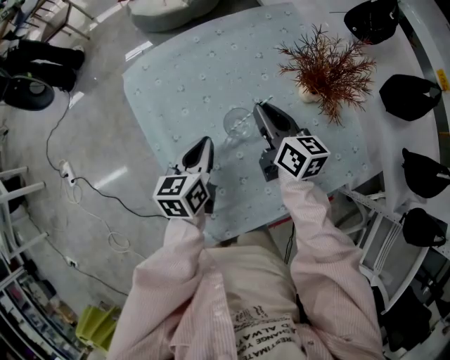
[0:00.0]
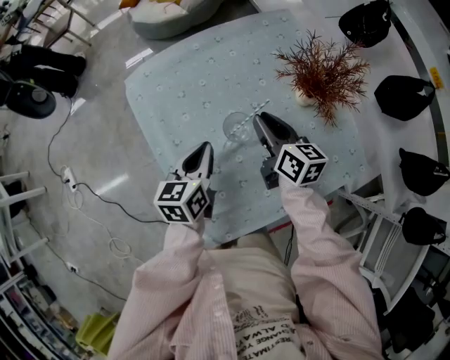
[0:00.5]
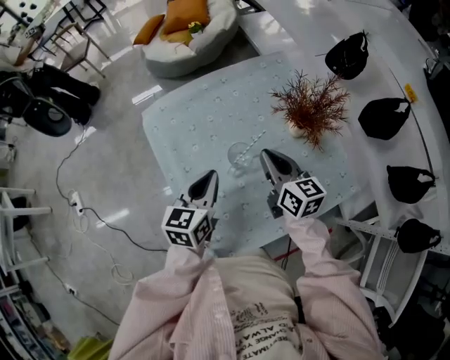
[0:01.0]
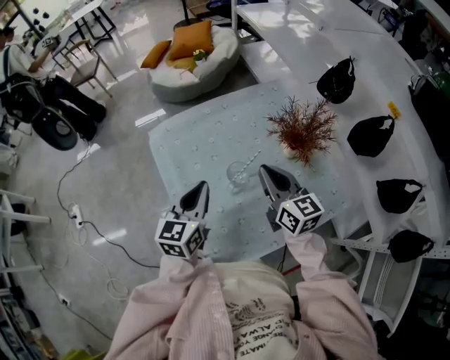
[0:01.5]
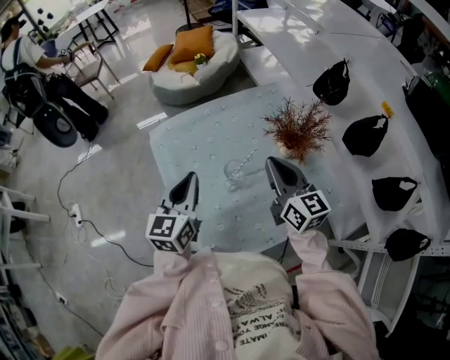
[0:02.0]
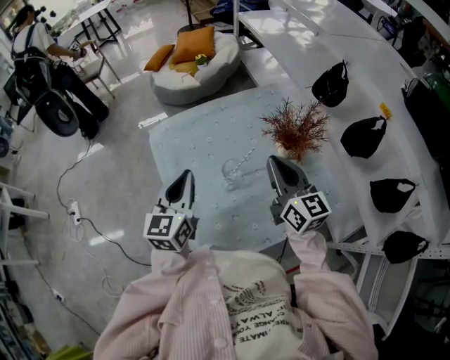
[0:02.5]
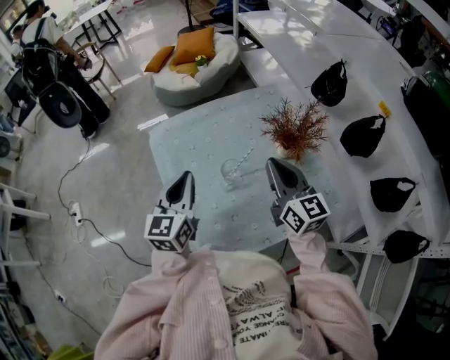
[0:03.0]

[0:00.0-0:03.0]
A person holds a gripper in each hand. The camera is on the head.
0:00.0 to 0:01.5: The right gripper is displaced upward and backward by approximately 15 cm; the left gripper heads upward, covering some 15 cm, and swivels some 20 degrees.
0:01.5 to 0:03.0: The right gripper travels upward by approximately 5 cm.

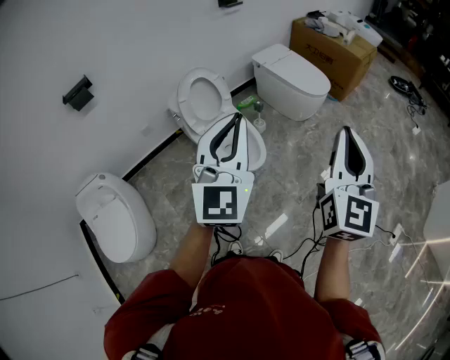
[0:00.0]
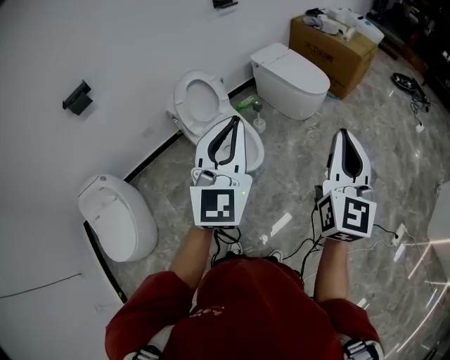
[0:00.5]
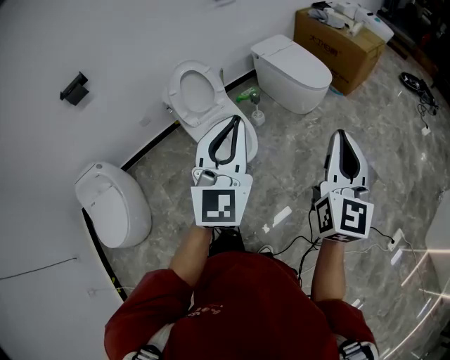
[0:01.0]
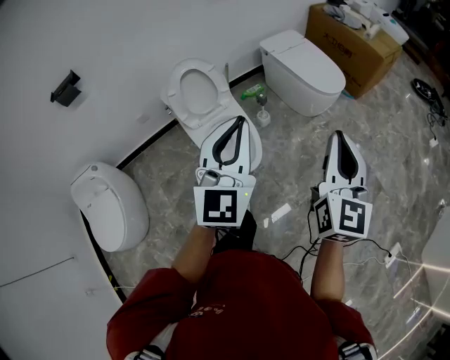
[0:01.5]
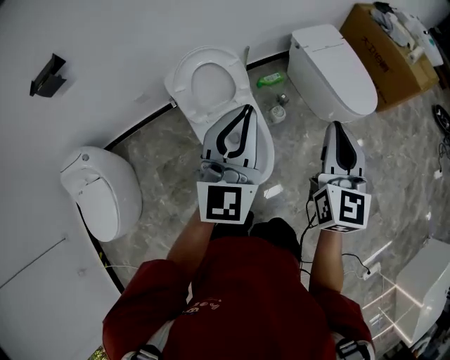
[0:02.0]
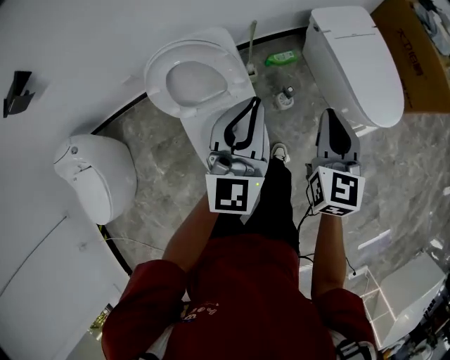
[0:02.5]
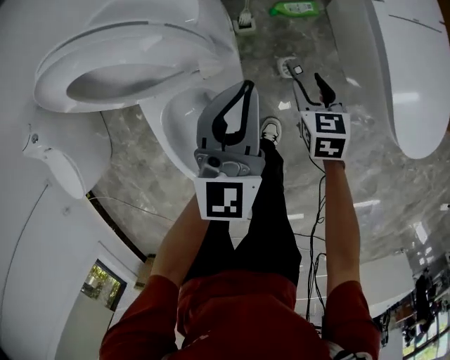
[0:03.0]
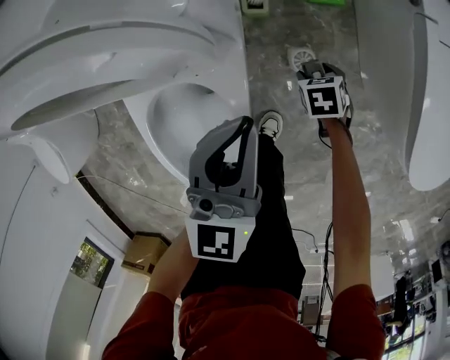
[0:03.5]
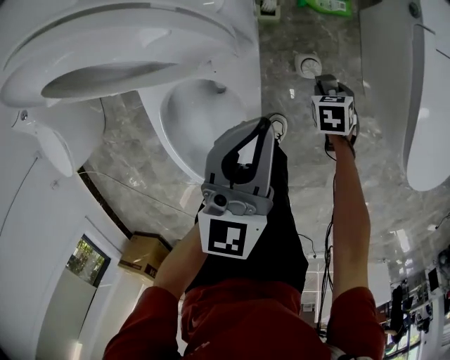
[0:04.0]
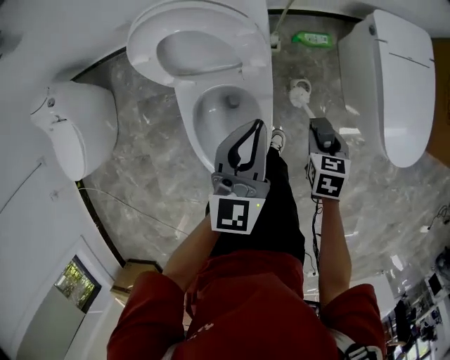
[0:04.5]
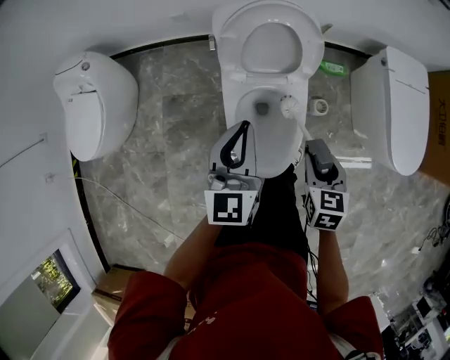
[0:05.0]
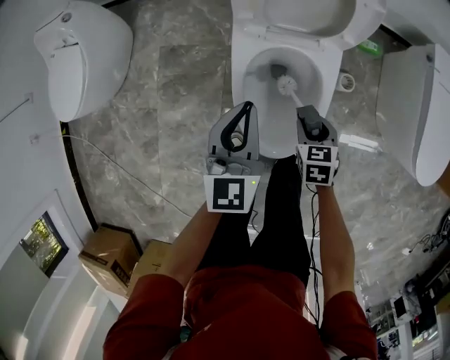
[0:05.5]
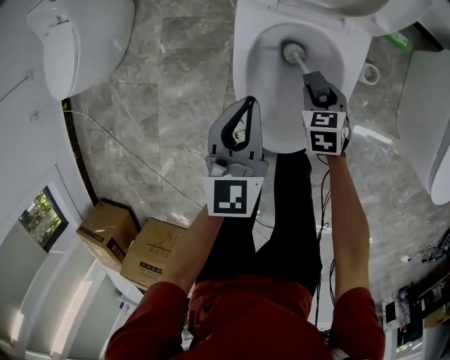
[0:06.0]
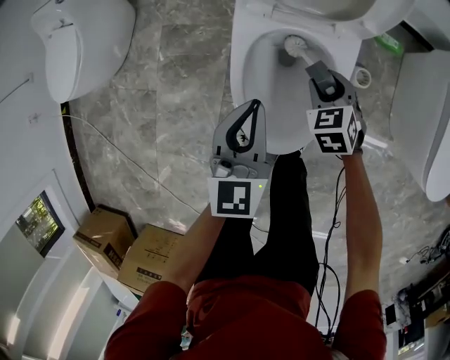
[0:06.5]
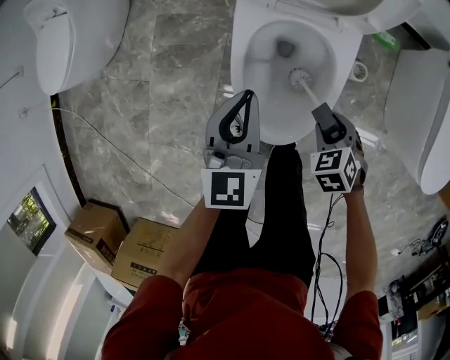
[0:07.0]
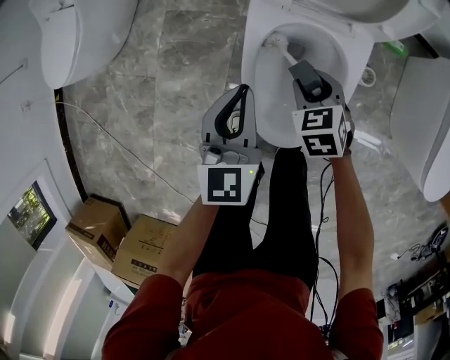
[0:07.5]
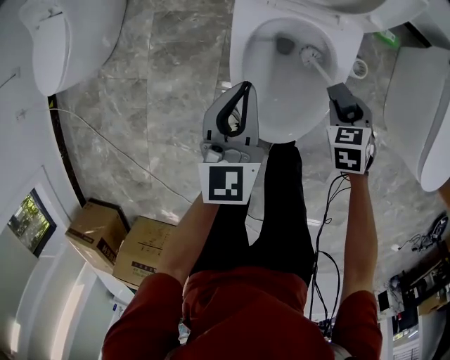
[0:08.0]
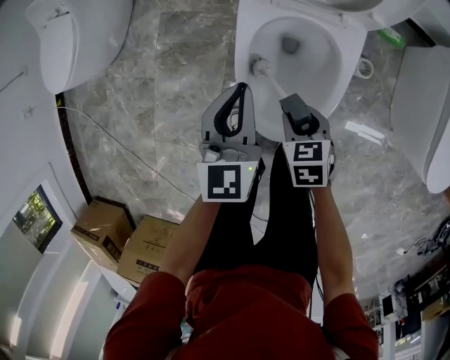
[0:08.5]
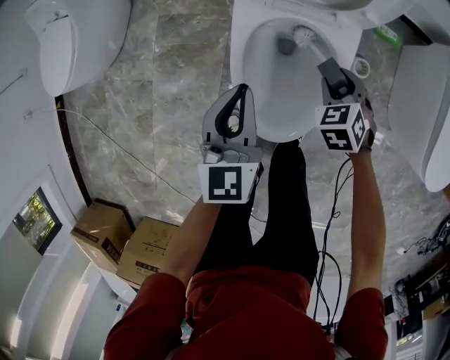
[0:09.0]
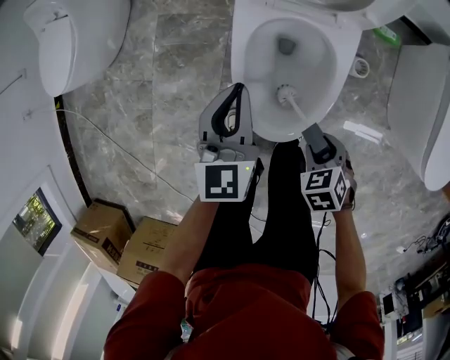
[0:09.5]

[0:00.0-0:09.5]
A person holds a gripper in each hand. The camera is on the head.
0:00.0 to 0:02.0: The grippers both shift forward by some 40 cm. The right gripper turns by about 20 degrees.
0:02.0 to 0:04.0: The left gripper goes some 40 cm downward, and turns by about 30 degrees, while the right gripper moves downward, some 70 cm, tips its fingers downward by about 70 degrees, and opens its fingers.
0:04.0 to 0:05.5: The left gripper moves about 20 cm upward and comes back, and rotates about 20 degrees, while the right gripper changes place by approximately 40 cm, and swivels about 20 degrees.
0:05.5 to 0:07.5: The right gripper moves forward and backward over roughly 15 cm, changing direction 2 times, and turns by about 20 degrees; the left gripper shifts about 5 cm downward.
0:07.5 to 0:09.5: The right gripper moves about 20 cm.

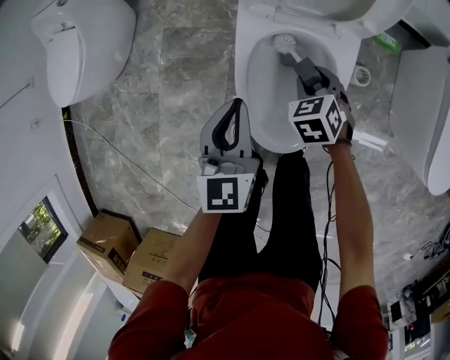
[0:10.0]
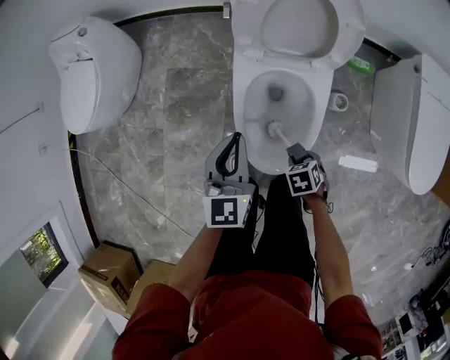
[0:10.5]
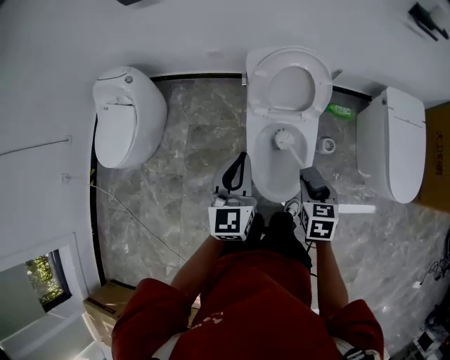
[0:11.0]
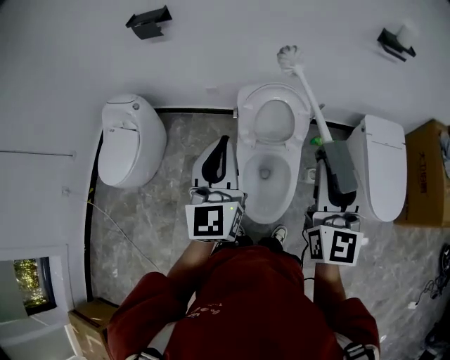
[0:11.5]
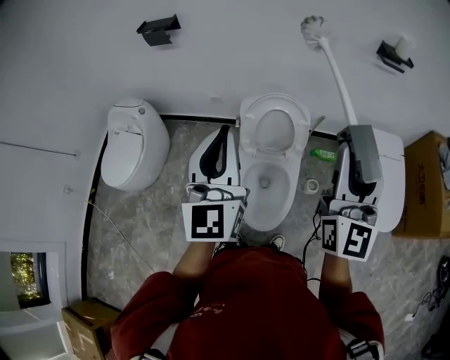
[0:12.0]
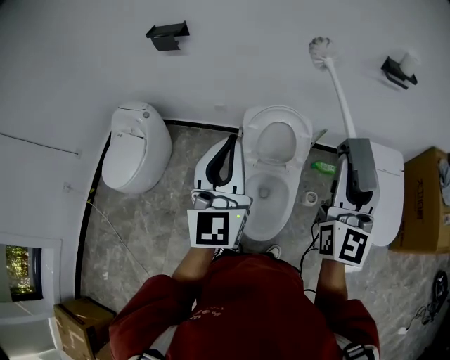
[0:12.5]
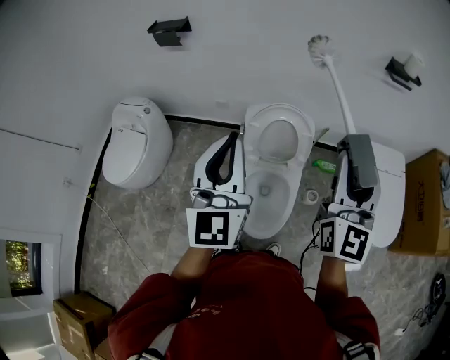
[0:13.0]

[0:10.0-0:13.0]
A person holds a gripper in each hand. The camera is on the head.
0:10.0 to 0:11.5: Both grippers move upward, roughly 60 cm. The right gripper angles its fingers upward, by about 70 degrees. The left gripper angles its fingers upward, by about 30 degrees.
0:11.5 to 0:13.0: Both grippers move upward, roughly 5 cm.

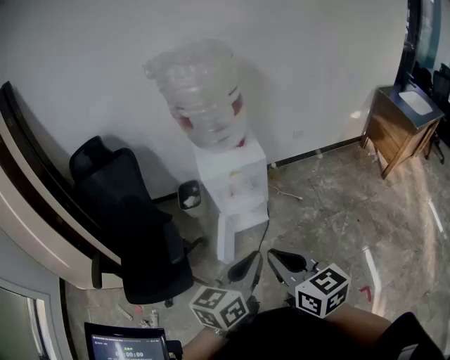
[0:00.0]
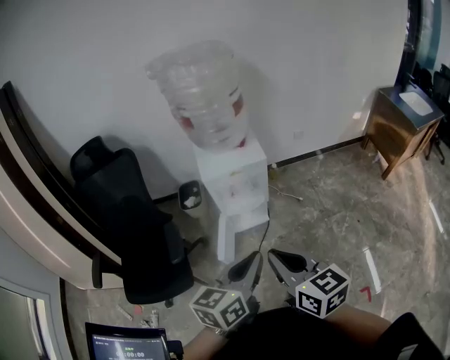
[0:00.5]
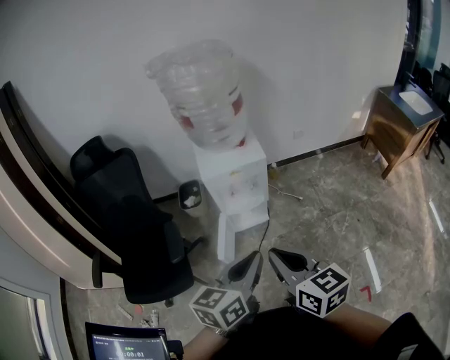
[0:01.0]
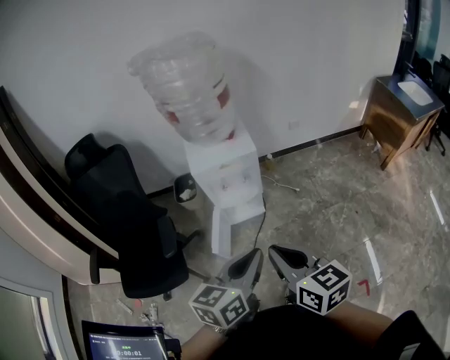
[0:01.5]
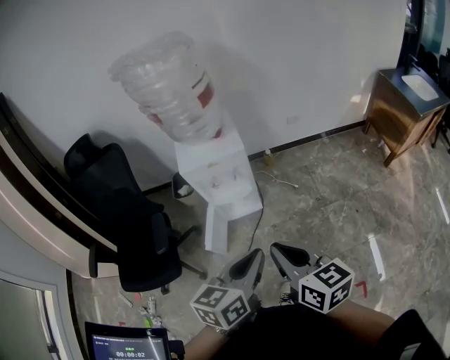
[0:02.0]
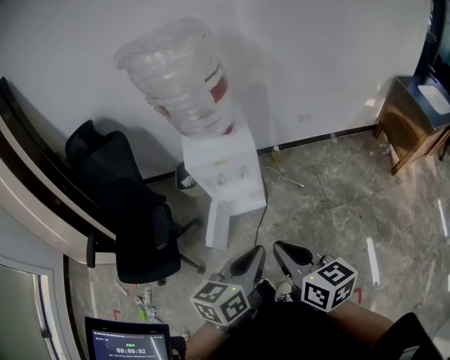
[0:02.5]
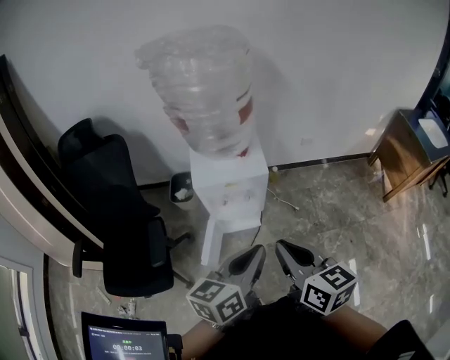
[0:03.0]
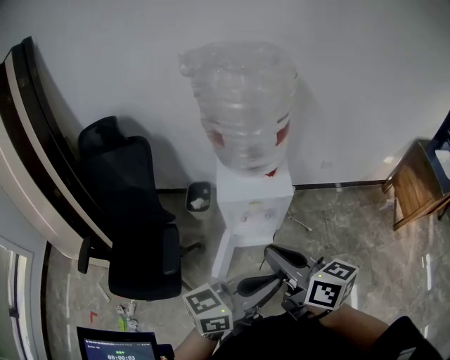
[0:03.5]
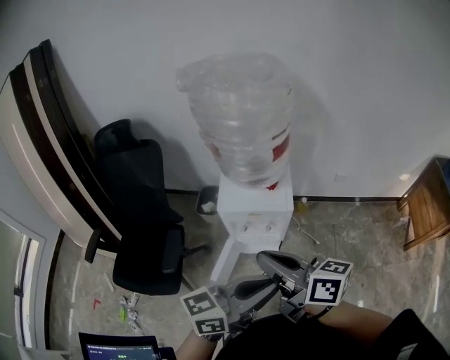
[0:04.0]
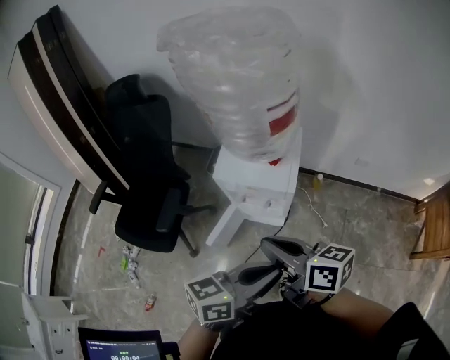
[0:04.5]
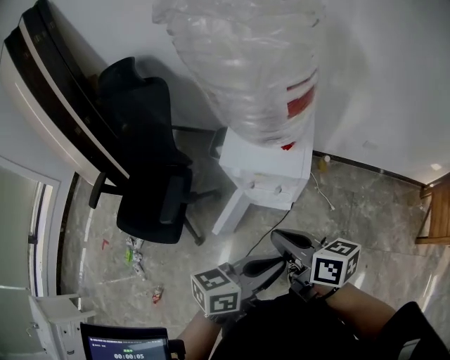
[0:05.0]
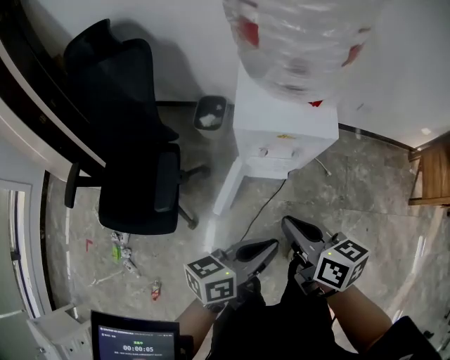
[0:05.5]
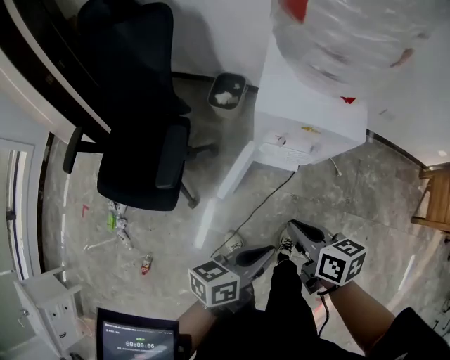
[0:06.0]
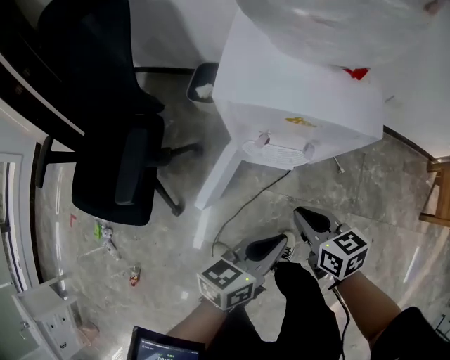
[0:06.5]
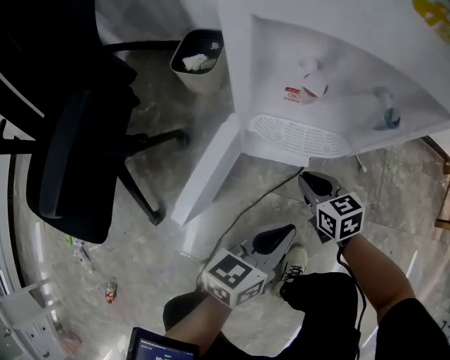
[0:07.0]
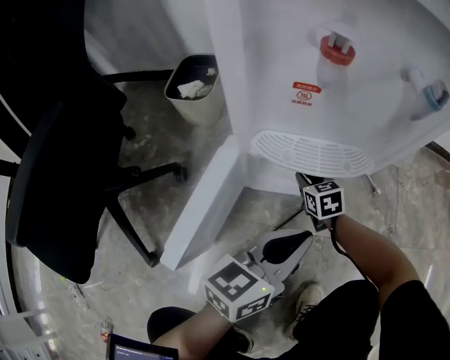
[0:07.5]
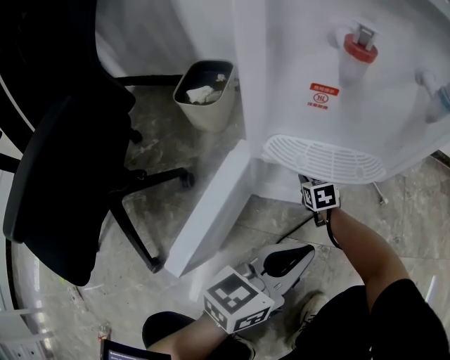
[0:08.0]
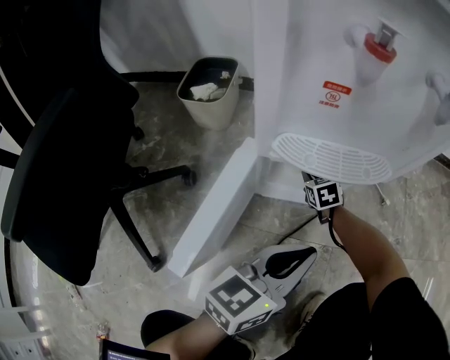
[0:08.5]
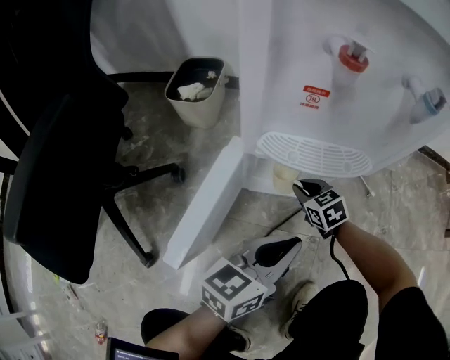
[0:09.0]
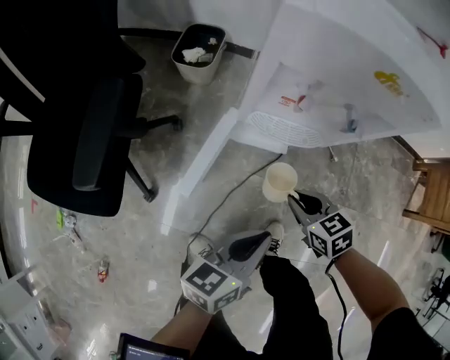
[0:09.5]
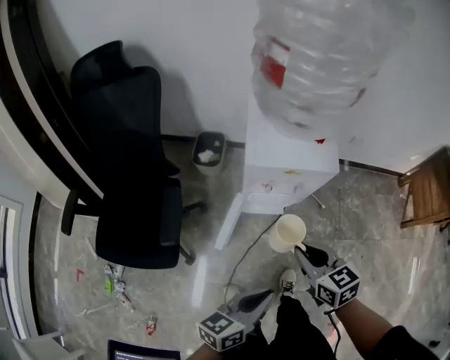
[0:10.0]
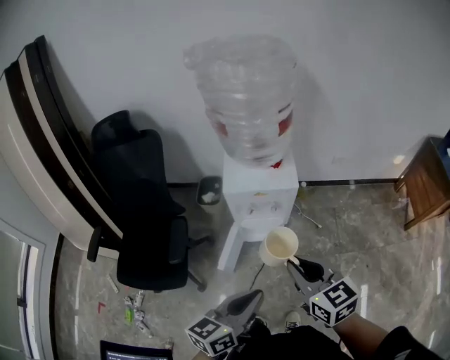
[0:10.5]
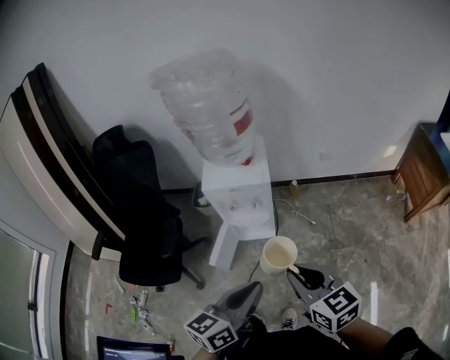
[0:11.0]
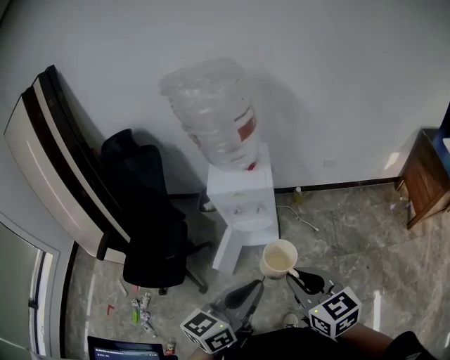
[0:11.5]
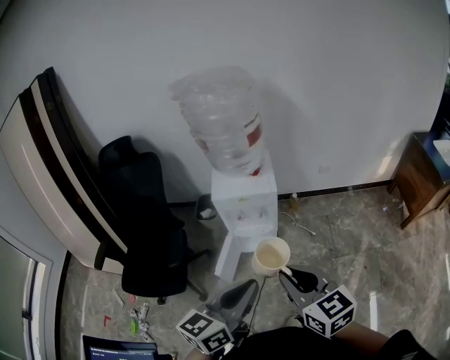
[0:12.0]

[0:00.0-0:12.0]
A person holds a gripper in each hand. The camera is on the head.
0:00.0 to 0:02.0: Both grippers travel together to the right, about 10 cm.
0:02.0 to 0:04.0: The right gripper is displaced forward and to the left by about 20 cm, and swivels some 30 degrees; the left gripper travels forward and upward by approximately 15 cm, and turns by approximately 20 degrees.
0:04.0 to 0:06.0: Both grippers move downward, some 25 cm. The left gripper changes its angle by approximately 40 degrees, while the right gripper tips its fingers downward by approximately 30 degrees.
0:06.0 to 0:08.0: The left gripper is displaced downward by some 40 cm, and turns by approximately 30 degrees; the right gripper shifts approximately 70 cm downward and forward, and swivels some 40 degrees.
0:08.0 to 0:10.0: The right gripper goes some 70 cm upward and backward, and rotates roughly 20 degrees. Meanwhile the left gripper is displaced upward and backward by roughly 50 cm.
0:10.0 to 0:12.0: The right gripper moves upward, backward and to the right, about 30 cm. The left gripper heads upward, covering approximately 25 cm, and swivels about 20 degrees.
